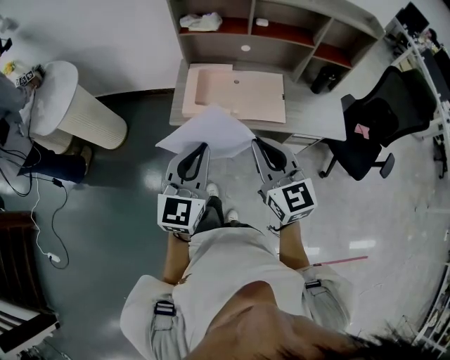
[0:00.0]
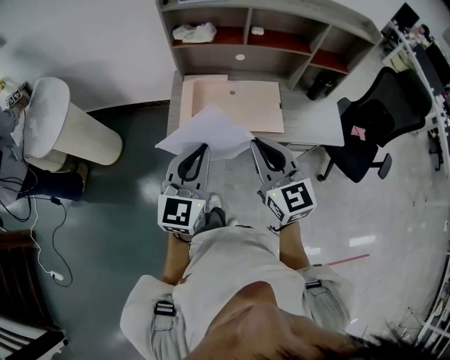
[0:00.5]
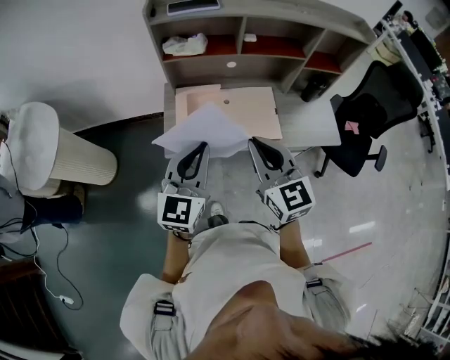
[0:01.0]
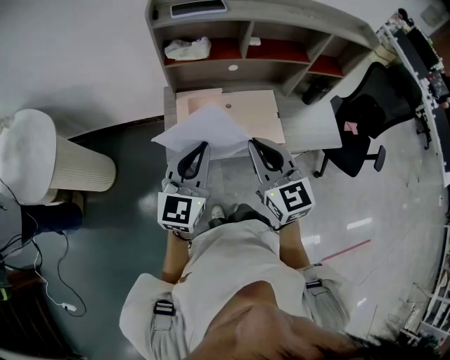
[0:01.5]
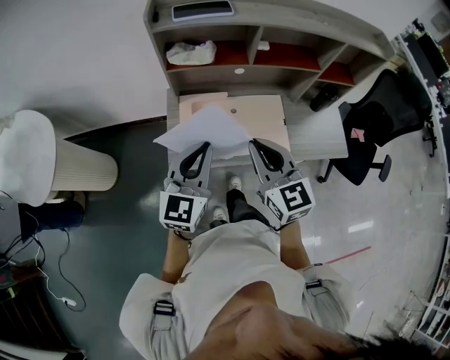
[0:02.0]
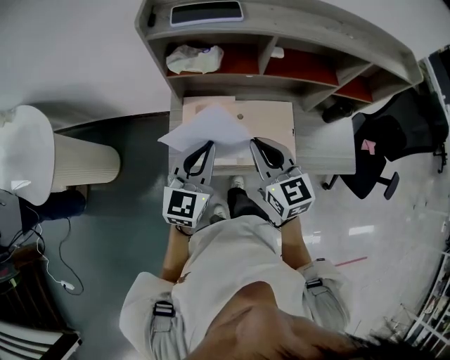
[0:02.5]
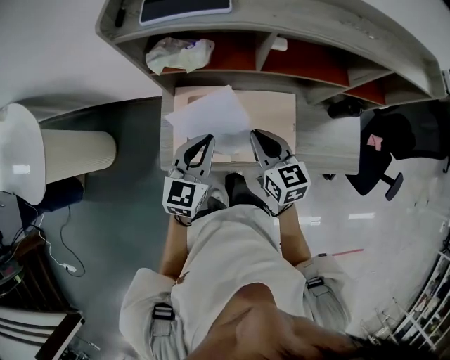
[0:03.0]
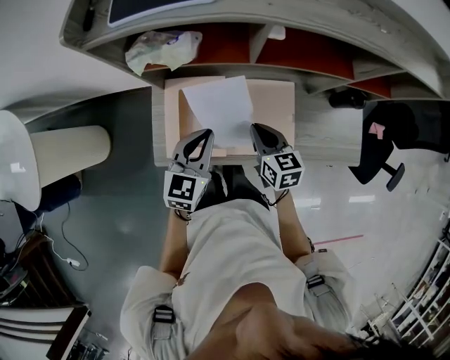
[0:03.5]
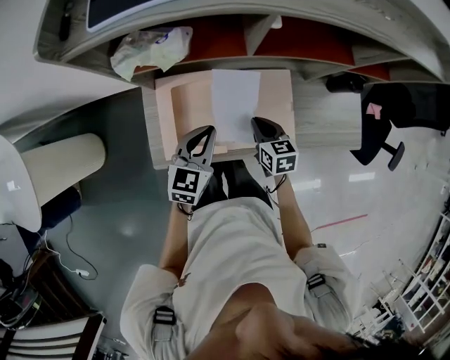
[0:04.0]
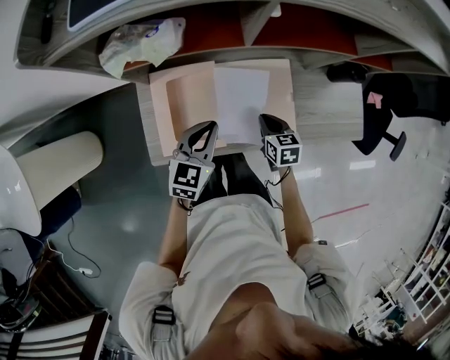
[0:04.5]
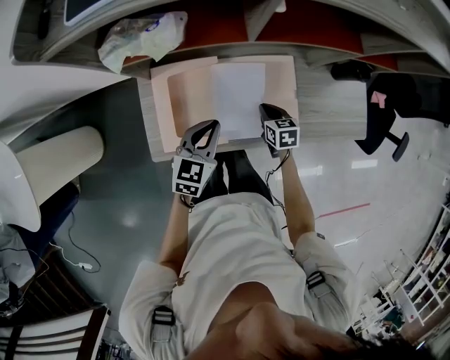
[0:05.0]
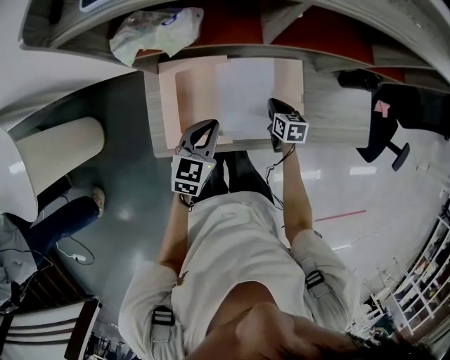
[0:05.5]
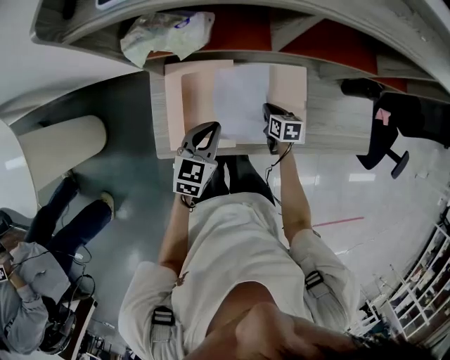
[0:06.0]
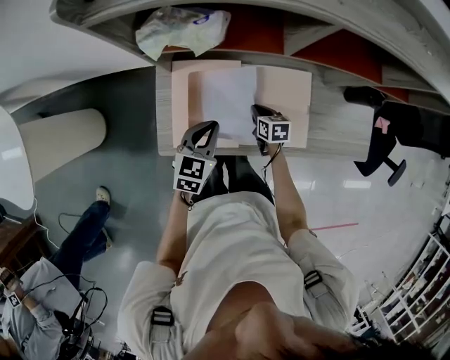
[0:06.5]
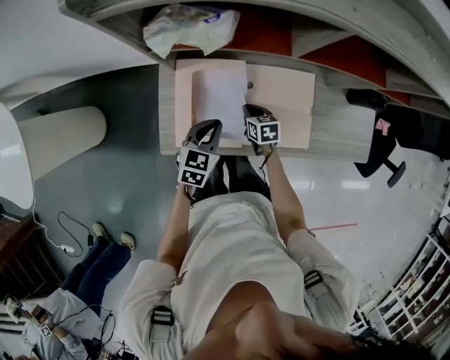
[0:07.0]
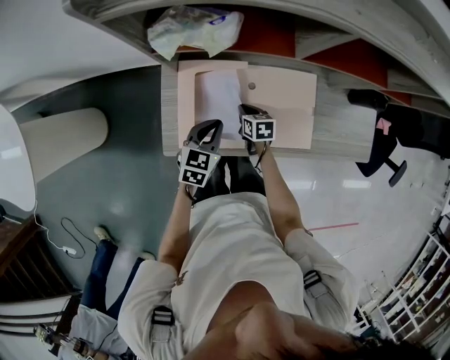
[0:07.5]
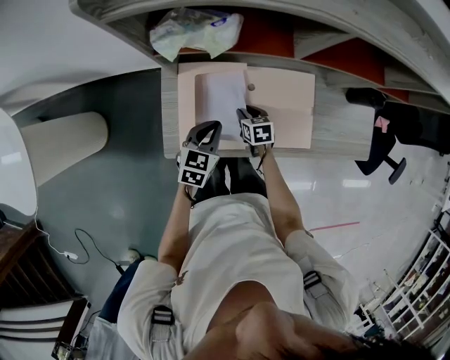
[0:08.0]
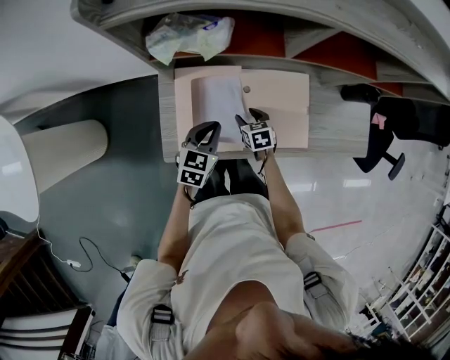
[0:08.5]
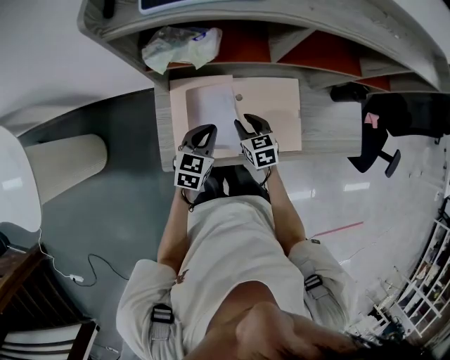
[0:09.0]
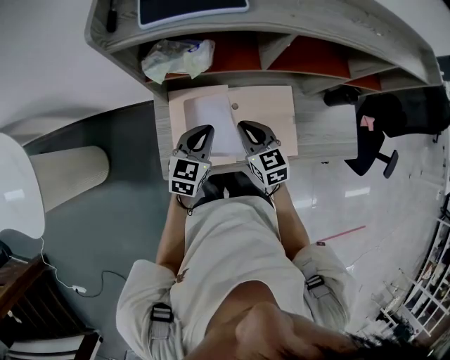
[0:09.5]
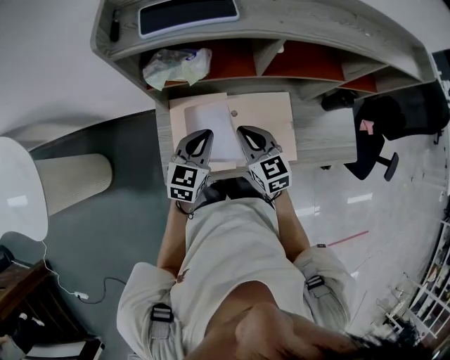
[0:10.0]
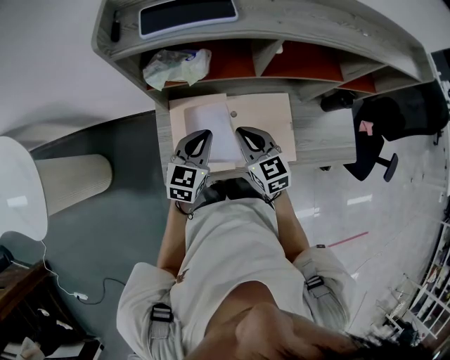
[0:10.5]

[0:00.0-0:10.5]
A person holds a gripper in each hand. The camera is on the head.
0:00.0 to 0:02.0: Both grippers move forward, about 20 cm.
0:02.0 to 0:04.0: Both grippers move downward and forward, about 30 cm. The right gripper changes its angle by about 40 degrees. Meanwhile the left gripper swivels roughly 20 degrees.
0:04.0 to 0:06.5: The right gripper shifts approximately 15 cm downward, while the left gripper is displaced downward by approximately 5 cm.
0:06.5 to 0:08.5: The right gripper travels to the left by approximately 5 cm, and opens its fingers.
0:08.5 to 0:10.5: The right gripper is displaced upward by approximately 25 cm, angles its fingers upward, by some 30 degrees, and closes its fingers. The left gripper travels upward by about 10 cm.

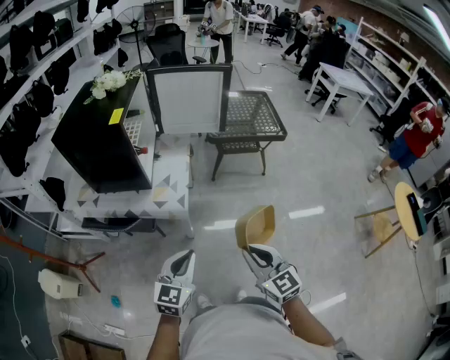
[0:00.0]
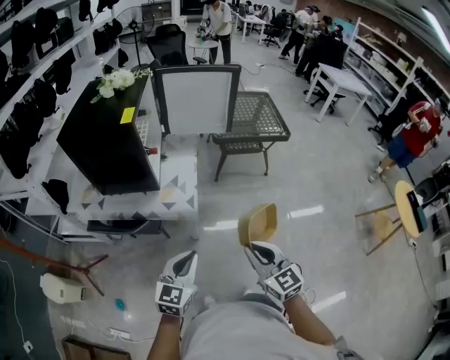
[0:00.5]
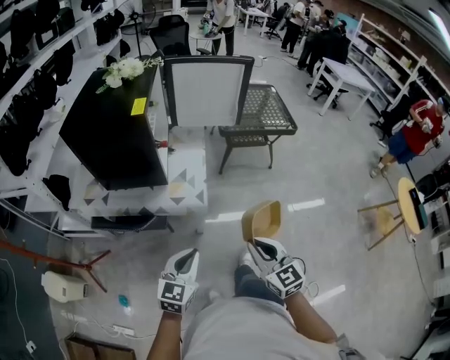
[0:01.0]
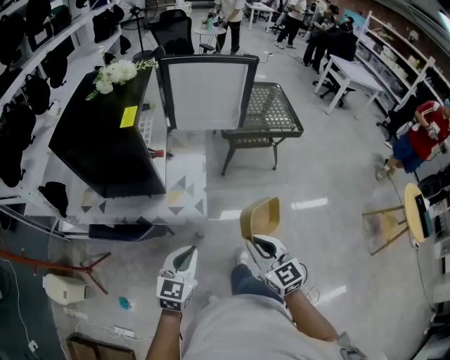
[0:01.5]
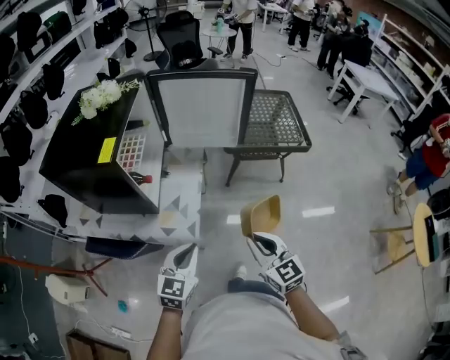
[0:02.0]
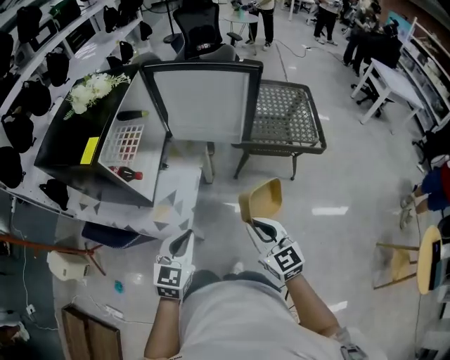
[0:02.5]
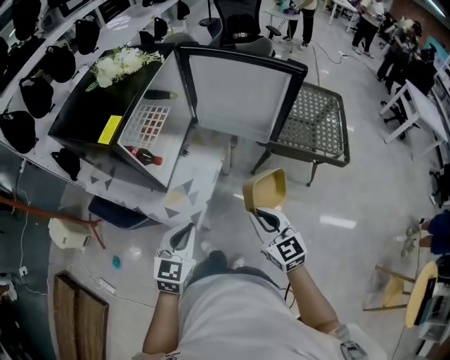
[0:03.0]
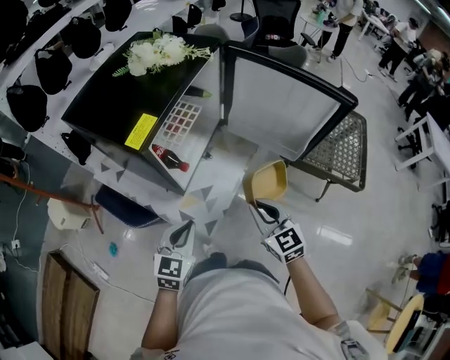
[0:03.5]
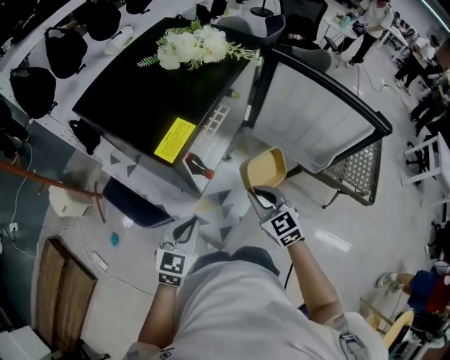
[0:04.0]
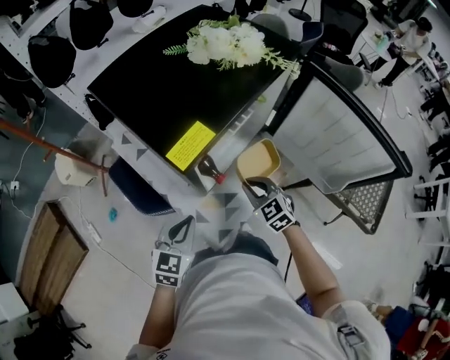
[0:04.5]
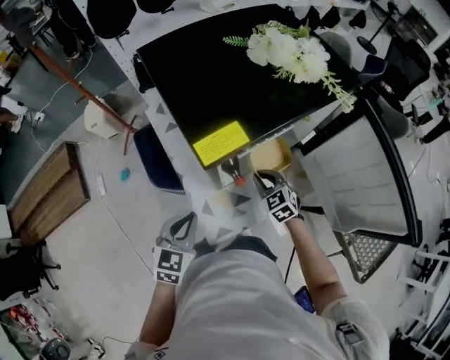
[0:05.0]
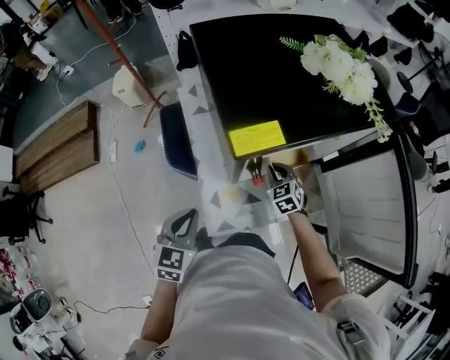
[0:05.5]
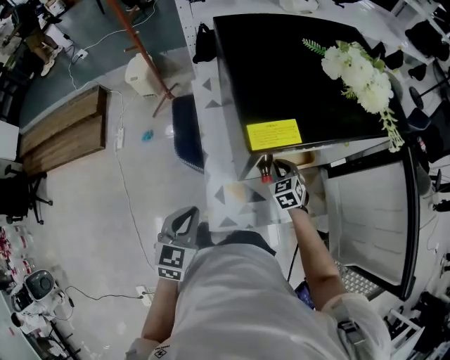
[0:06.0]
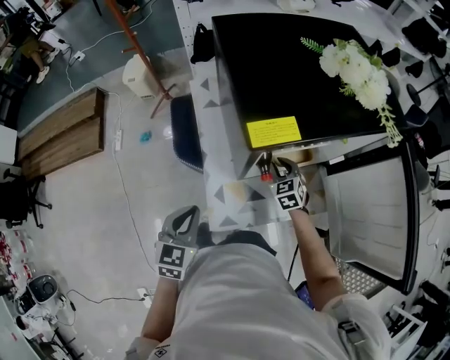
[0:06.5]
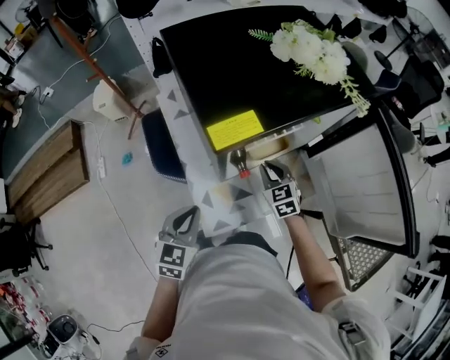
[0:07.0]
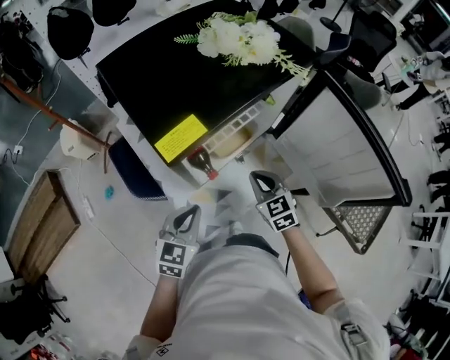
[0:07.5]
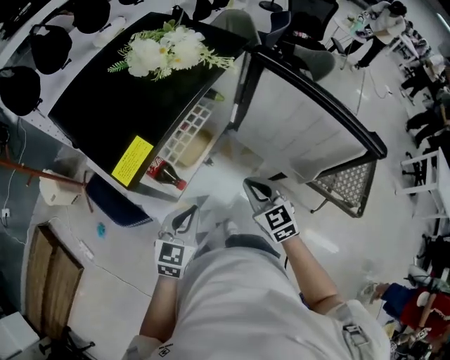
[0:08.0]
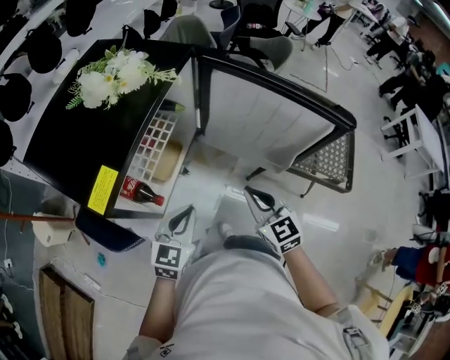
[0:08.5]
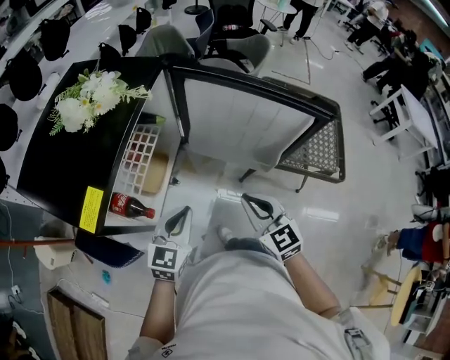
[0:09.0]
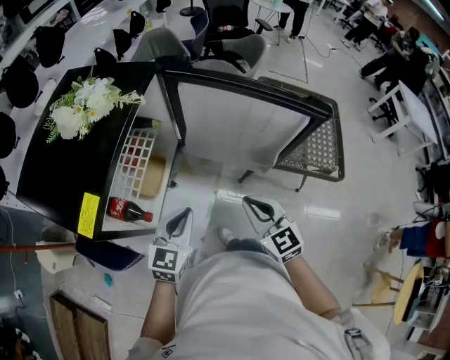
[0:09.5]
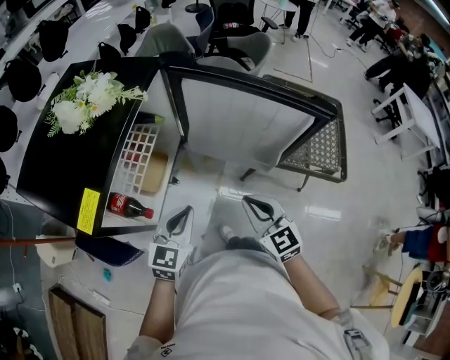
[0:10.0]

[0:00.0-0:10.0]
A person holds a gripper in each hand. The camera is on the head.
0:00.0 to 0:02.0: Both grippers move forward, about 20 cm.
0:02.0 to 0:04.0: The left gripper changes place by some 20 cm, and rotates about 30 degrees, while the right gripper shifts by some 35 cm, and turns by roughly 40 degrees.
0:04.0 to 0:06.0: The right gripper moves some 25 cm, and swivels approximately 40 degrees; the left gripper moves roughly 10 cm, and rotates about 50 degrees.
0:06.0 to 0:08.0: The right gripper changes place by approximately 25 cm, and turns by some 40 degrees. Meanwhile the left gripper moves roughly 20 cm, and rotates approximately 50 degrees.
0:08.0 to 0:10.0: Both grippers move to the right, some 10 cm.

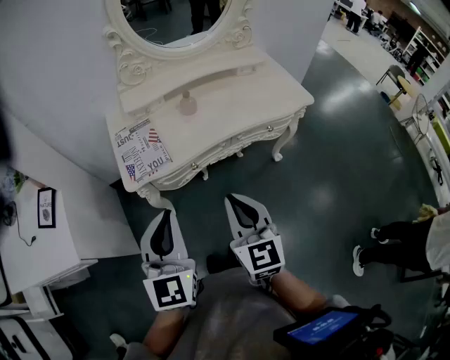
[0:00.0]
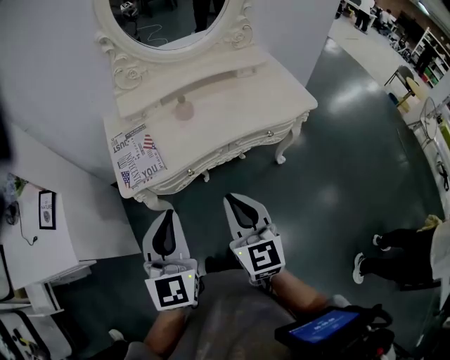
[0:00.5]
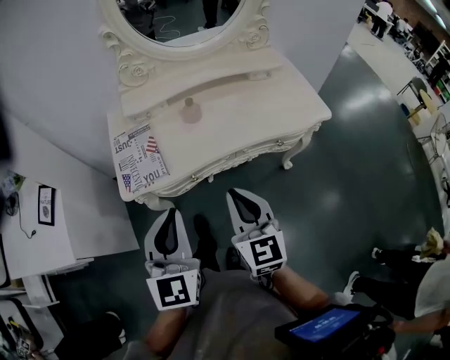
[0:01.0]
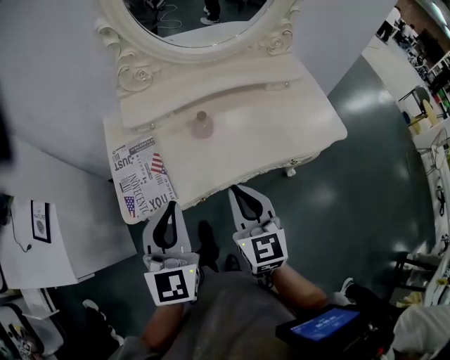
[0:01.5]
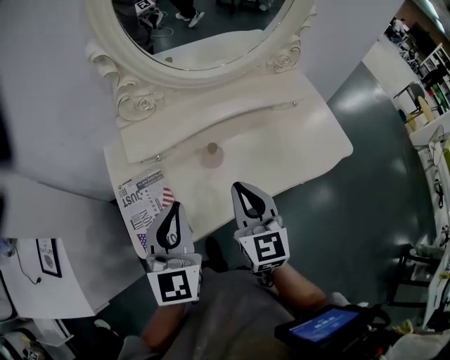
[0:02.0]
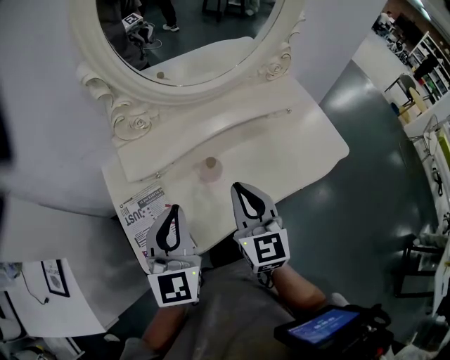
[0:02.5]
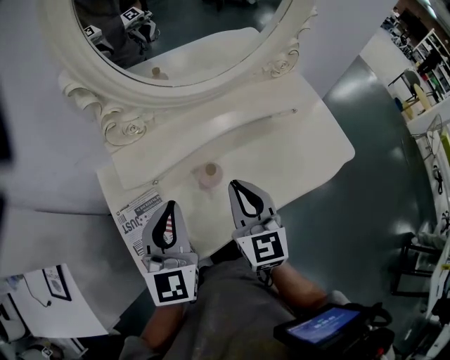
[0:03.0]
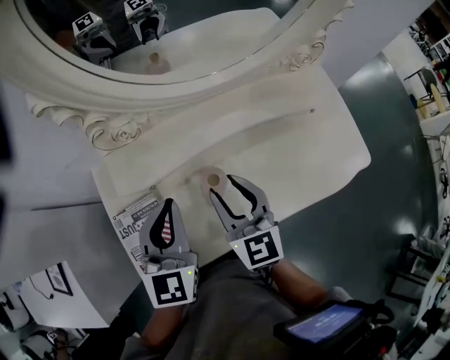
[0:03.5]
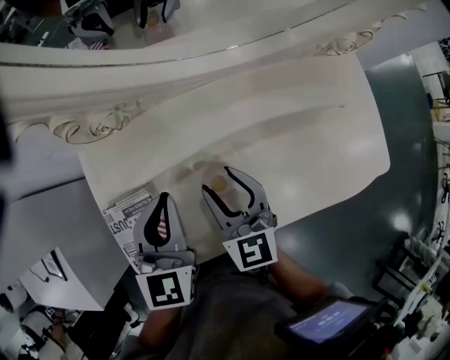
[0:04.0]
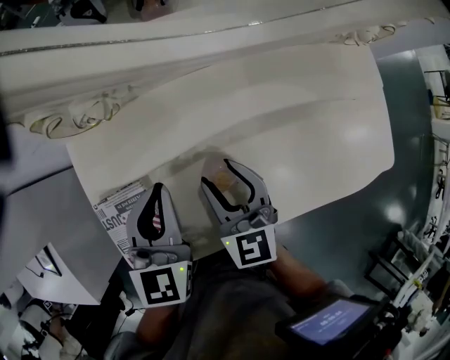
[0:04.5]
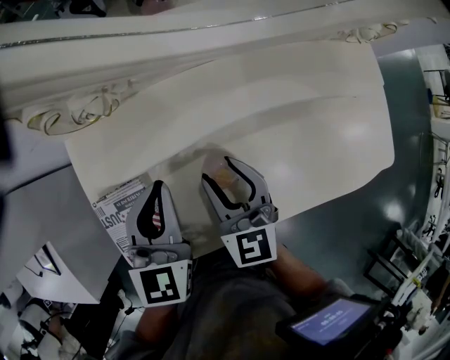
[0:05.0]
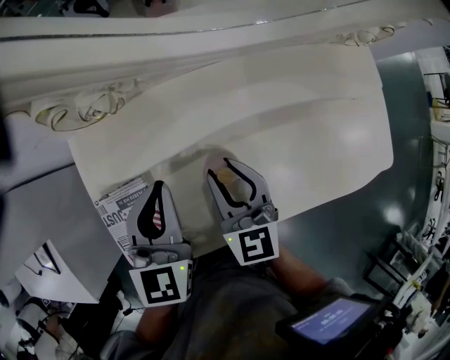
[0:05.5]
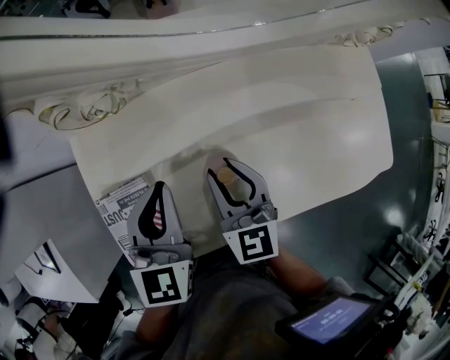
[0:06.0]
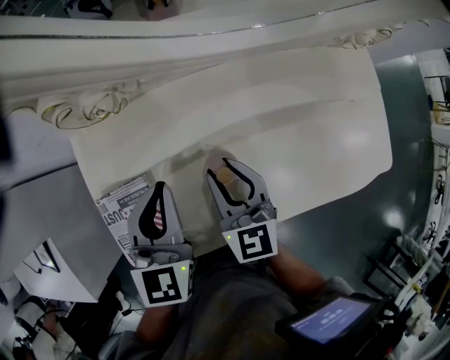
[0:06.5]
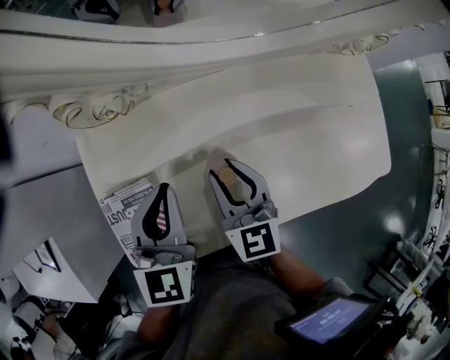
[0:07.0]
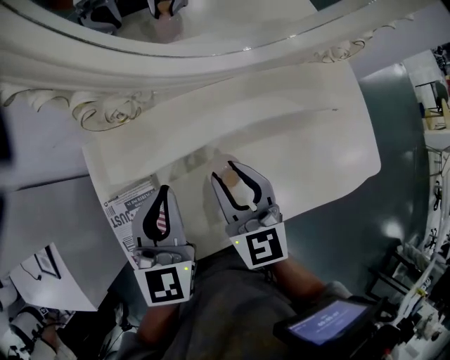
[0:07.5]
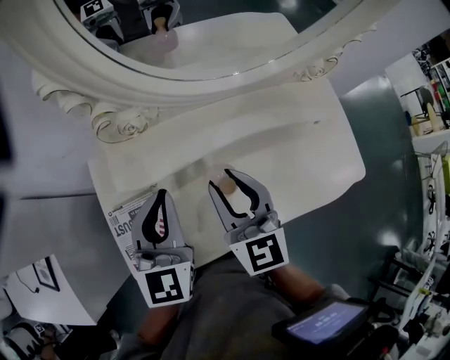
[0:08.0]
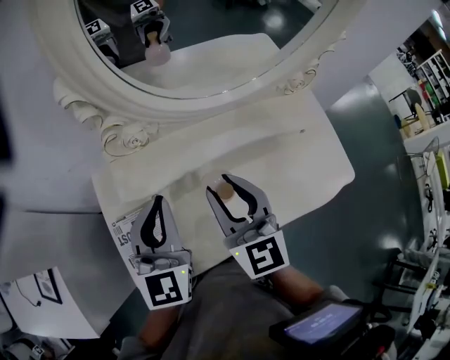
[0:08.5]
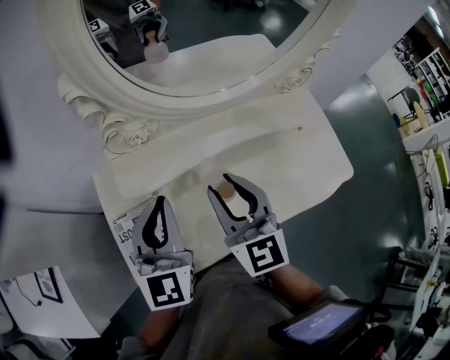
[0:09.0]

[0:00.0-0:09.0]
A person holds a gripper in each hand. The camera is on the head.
0:00.0 to 0:02.0: Both grippers travel together forward, roughly 30 cm.
0:02.0 to 0:04.5: Both grippers move forward and downward, roughly 20 cm. The right gripper opens.
0:04.5 to 0:07.0: The grippers make only small movements.
0:07.0 to 0:09.0: The grippers both shift upward by approximately 15 cm.
